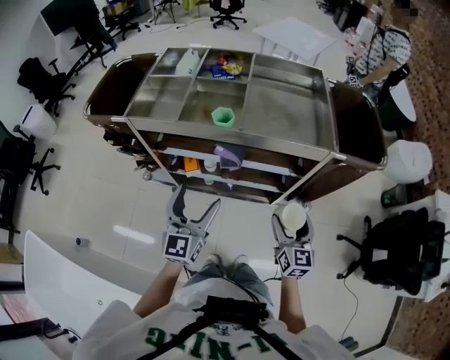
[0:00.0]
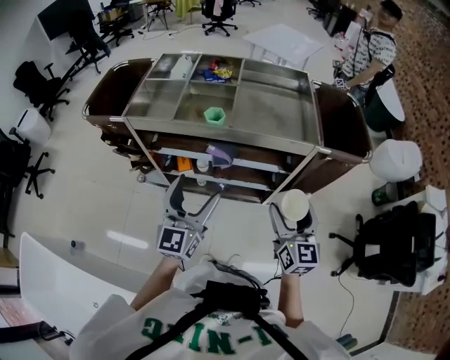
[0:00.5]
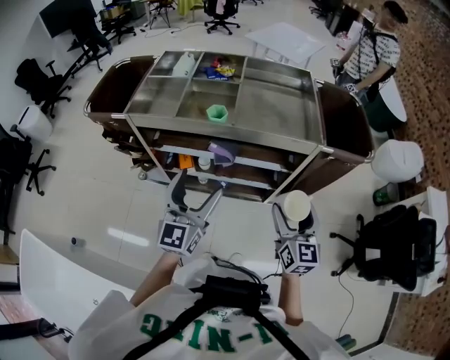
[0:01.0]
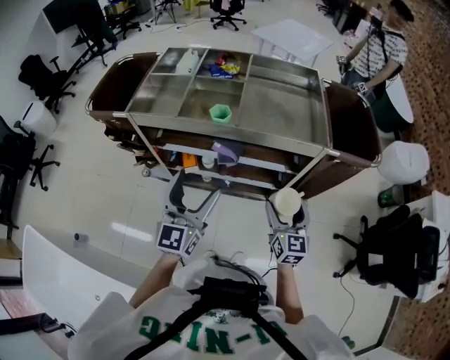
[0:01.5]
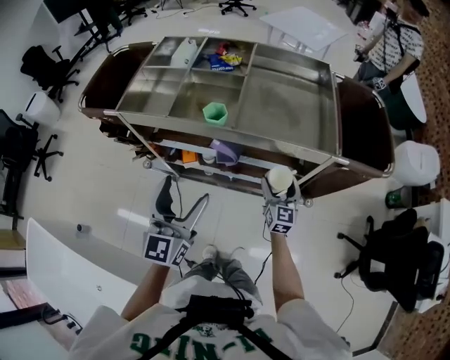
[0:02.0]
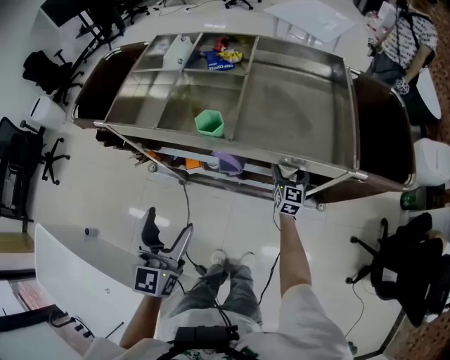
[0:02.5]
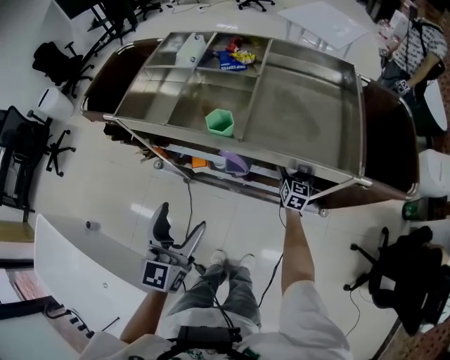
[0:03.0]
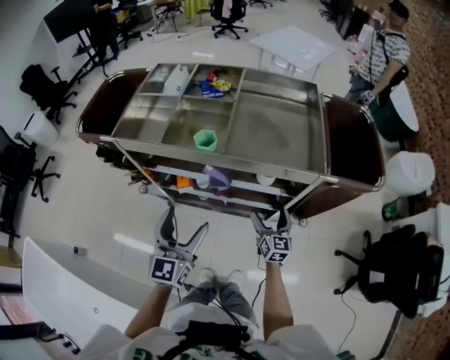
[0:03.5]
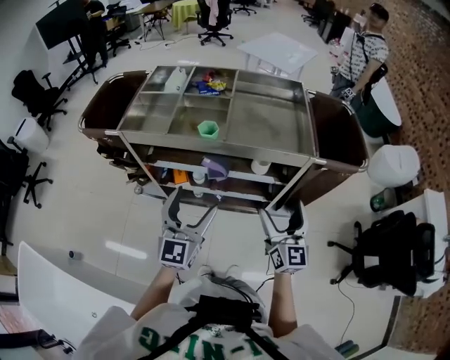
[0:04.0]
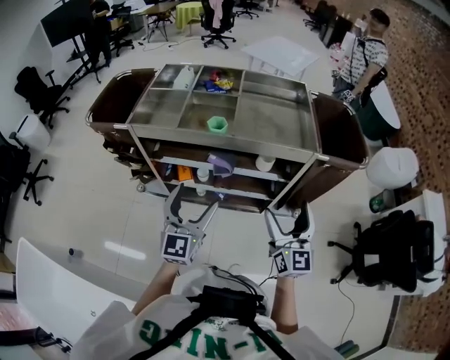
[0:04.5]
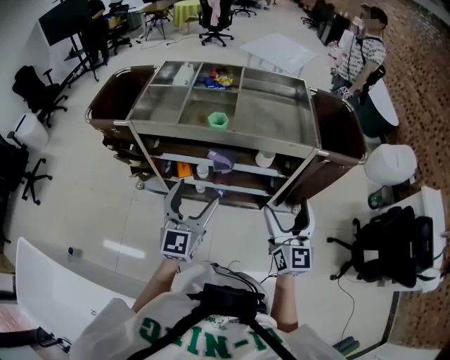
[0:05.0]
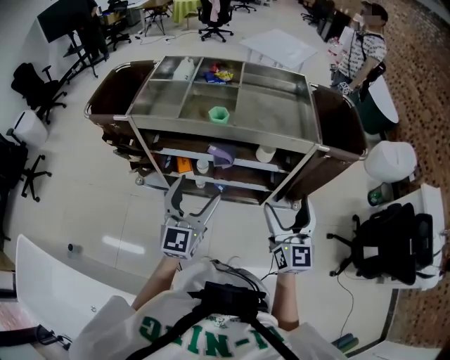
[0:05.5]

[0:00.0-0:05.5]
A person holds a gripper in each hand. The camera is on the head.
0:00.0 to 0:02.0: The left gripper shifts by roughly 5 cm; the right gripper moves forward and downward, about 15 cm.
0:02.0 to 0:03.5: The right gripper goes forward and returns, about 15 cm each way.
0:03.5 to 0:05.5: The right gripper moves upward and backward, some 30 cm, and turns by some 20 degrees; the left gripper goes roughly 10 cm upward and backward.

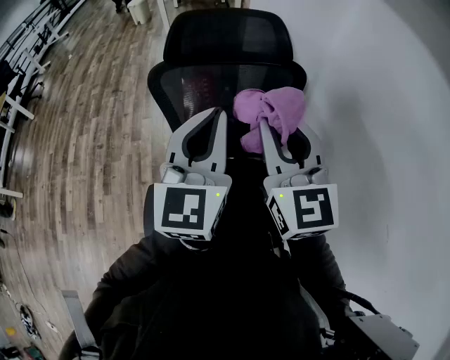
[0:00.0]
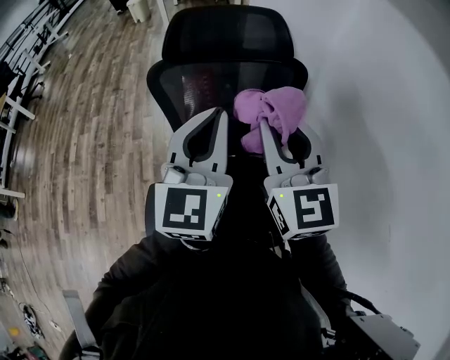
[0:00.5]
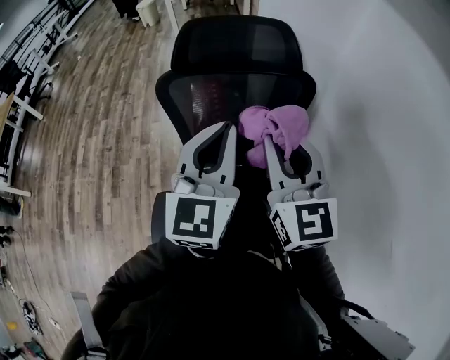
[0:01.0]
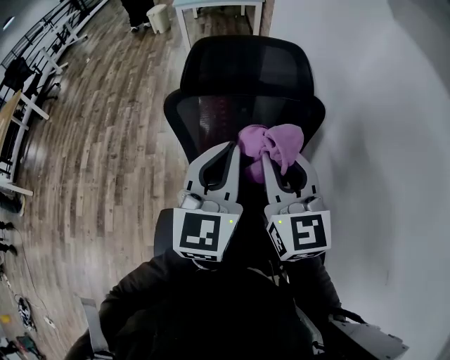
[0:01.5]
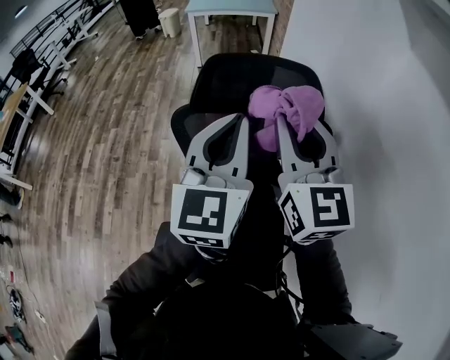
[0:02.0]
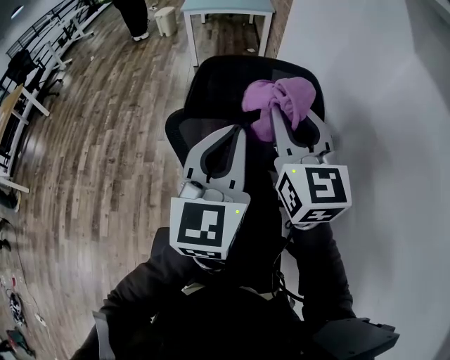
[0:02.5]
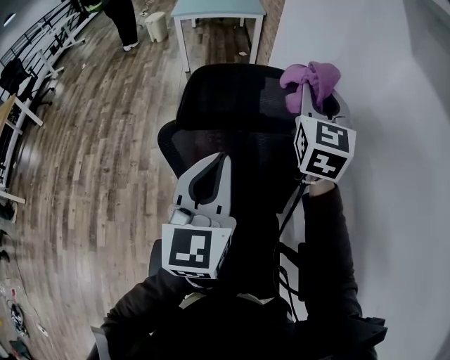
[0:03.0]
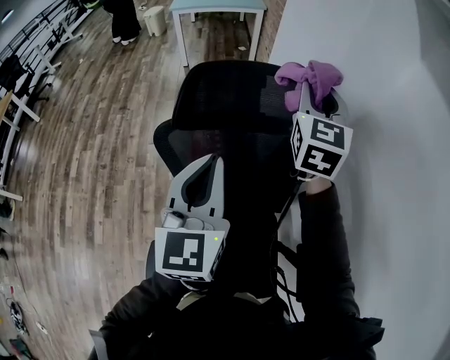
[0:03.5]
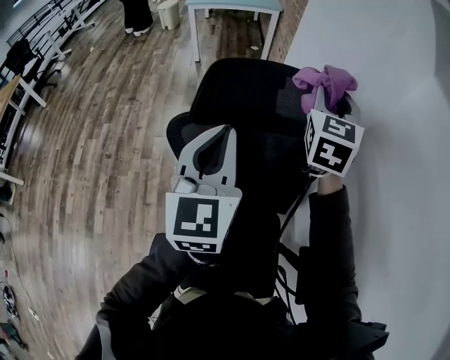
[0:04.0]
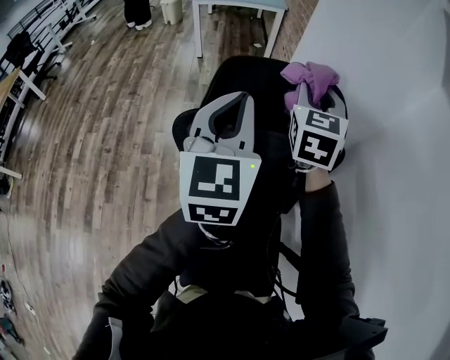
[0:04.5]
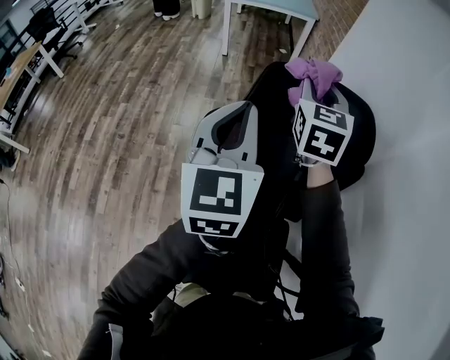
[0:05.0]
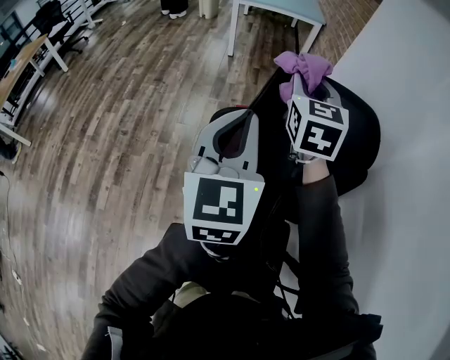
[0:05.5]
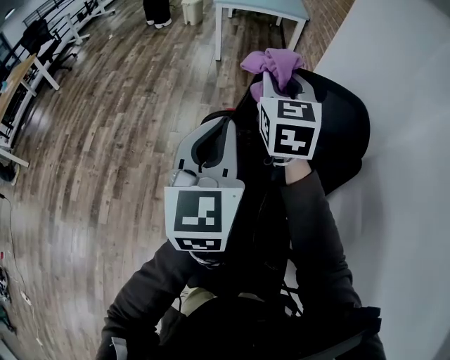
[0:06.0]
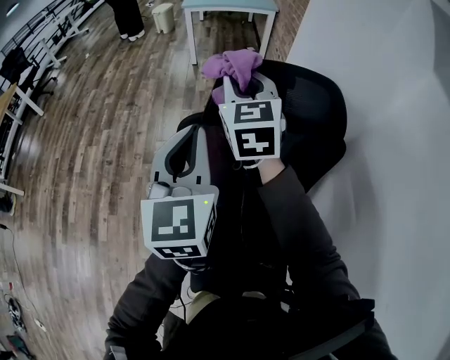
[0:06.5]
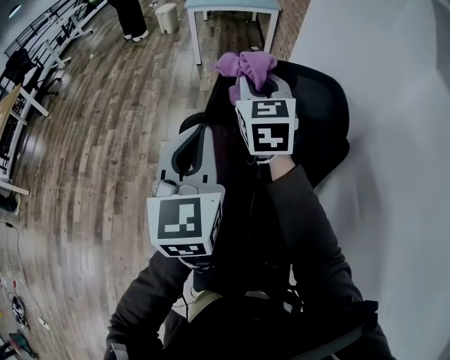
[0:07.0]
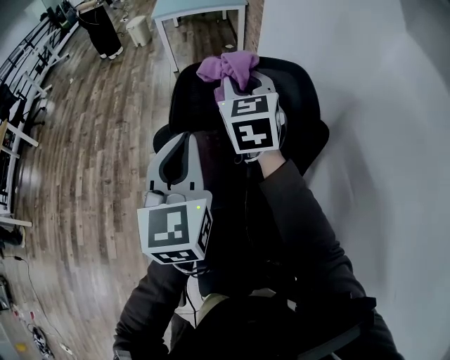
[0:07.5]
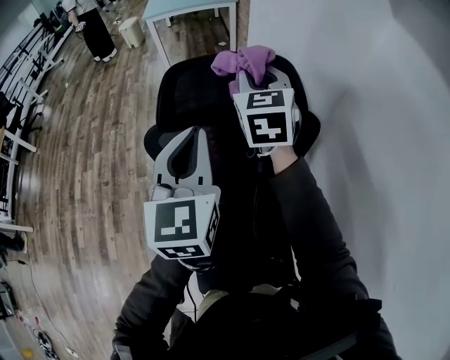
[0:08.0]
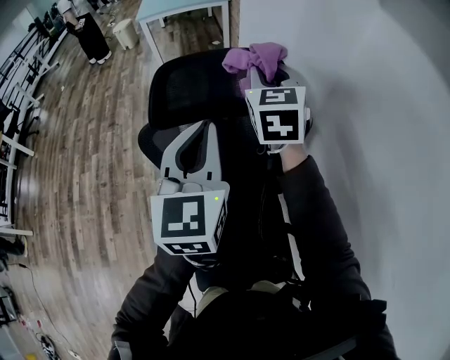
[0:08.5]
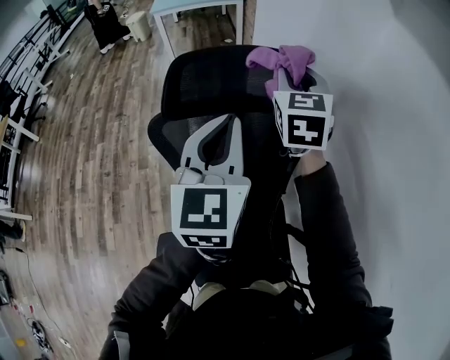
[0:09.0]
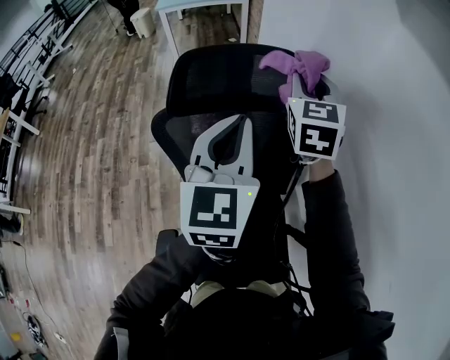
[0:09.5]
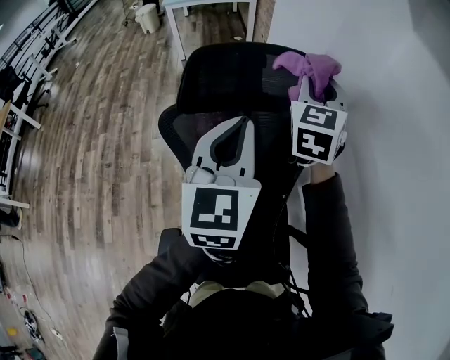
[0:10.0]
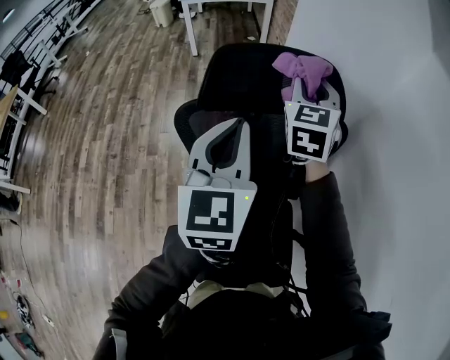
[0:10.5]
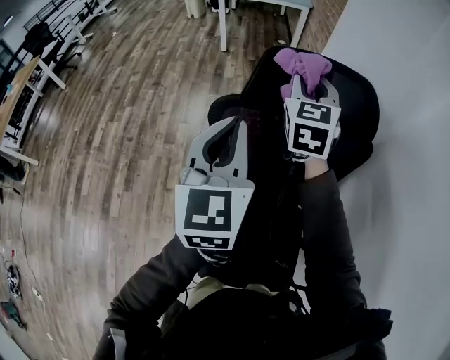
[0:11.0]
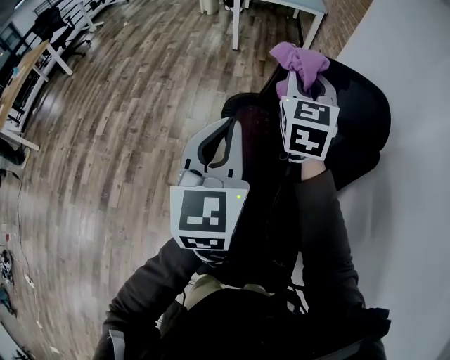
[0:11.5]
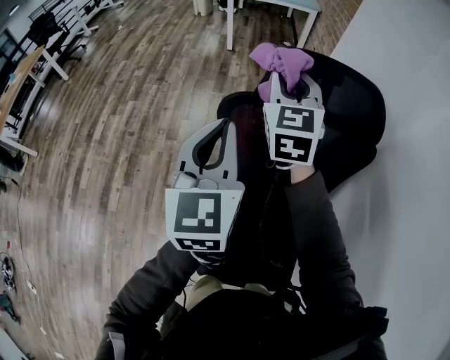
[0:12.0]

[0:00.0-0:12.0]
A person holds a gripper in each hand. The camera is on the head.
0:00.0 to 0:02.0: The left gripper moves forward, roughly 15 cm; the right gripper is displaced forward and upward by some 15 cm.
0:02.0 to 0:04.0: The left gripper heads forward, covering roughly 5 cm; the right gripper heads forward, covering some 20 cm, and rotates roughly 30 degrees.
0:04.0 to 0:06.0: The right gripper shifts about 25 cm to the left, and rotates about 20 degrees; the left gripper goes some 10 cm to the left.
0:06.0 to 0:08.0: The grippers both shift to the right by roughly 15 cm.
0:08.0 to 0:10.0: The right gripper is displaced to the right by roughly 10 cm.
0:10.0 to 0:12.0: Both grippers travel together to the left, about 20 cm. The right gripper swivels some 20 degrees.

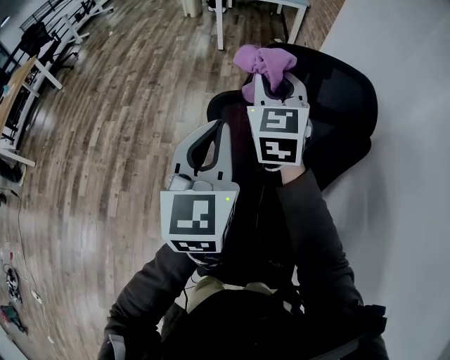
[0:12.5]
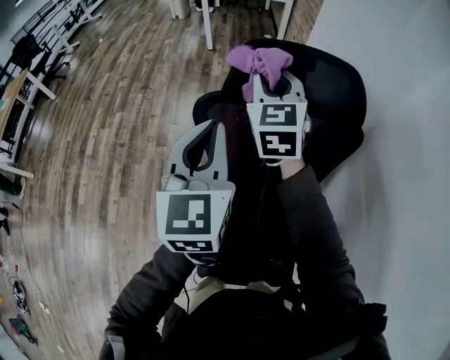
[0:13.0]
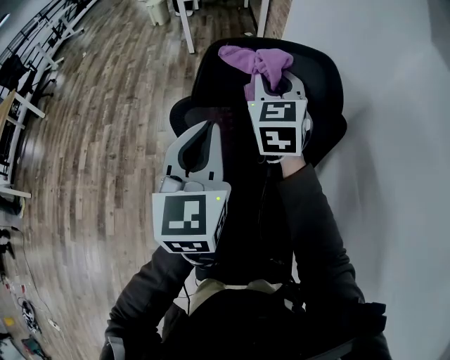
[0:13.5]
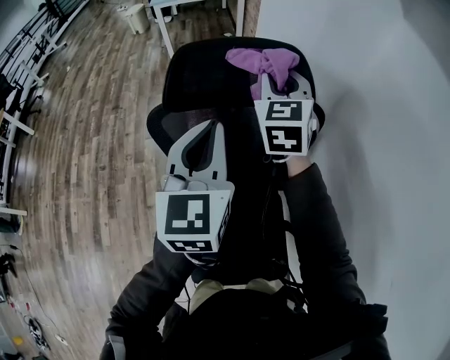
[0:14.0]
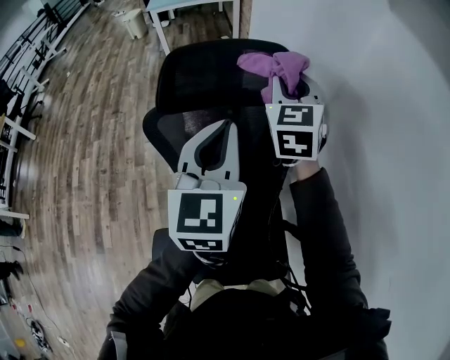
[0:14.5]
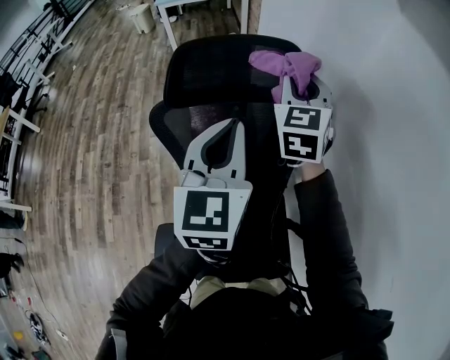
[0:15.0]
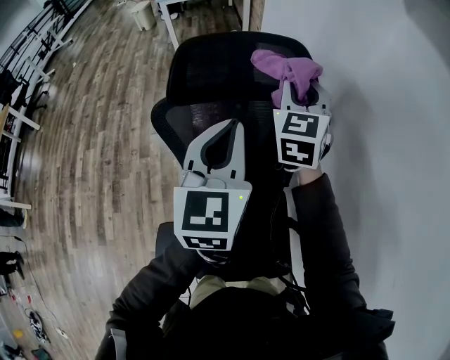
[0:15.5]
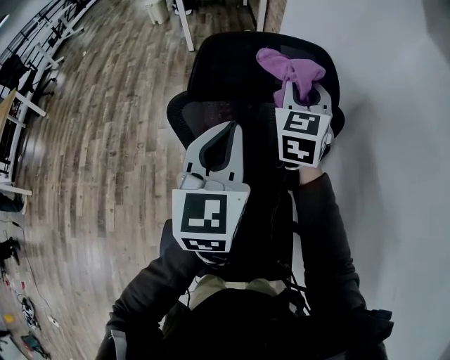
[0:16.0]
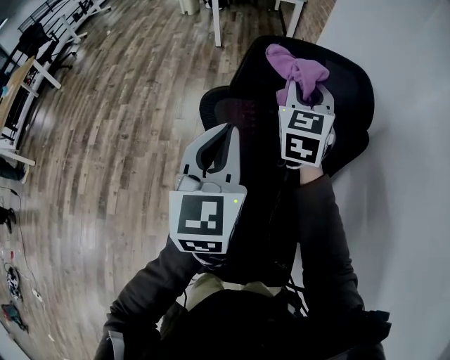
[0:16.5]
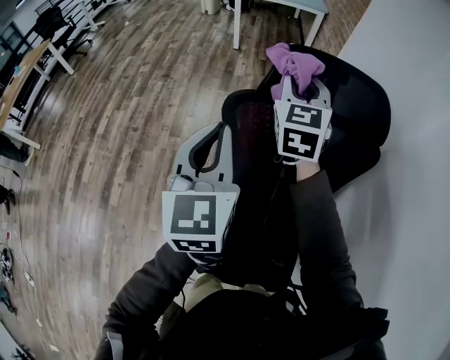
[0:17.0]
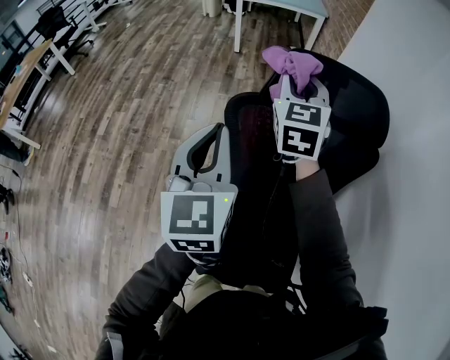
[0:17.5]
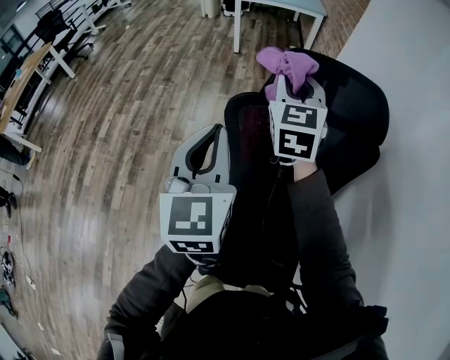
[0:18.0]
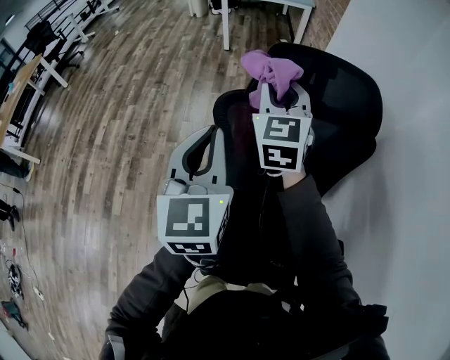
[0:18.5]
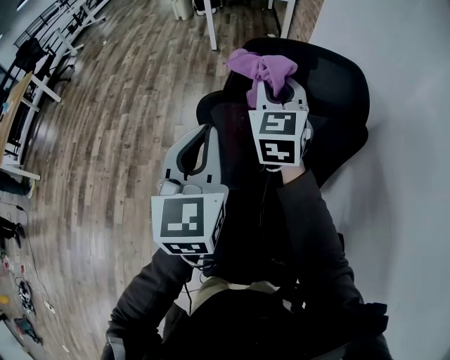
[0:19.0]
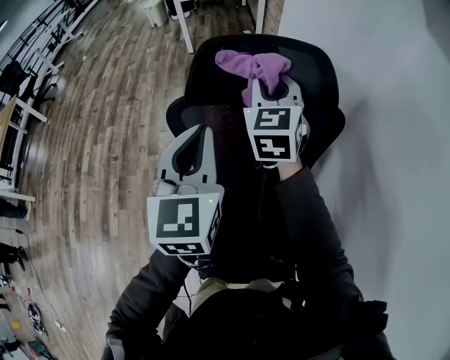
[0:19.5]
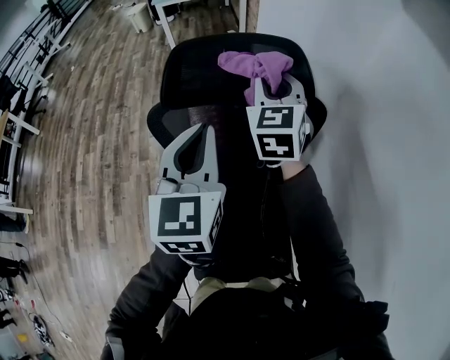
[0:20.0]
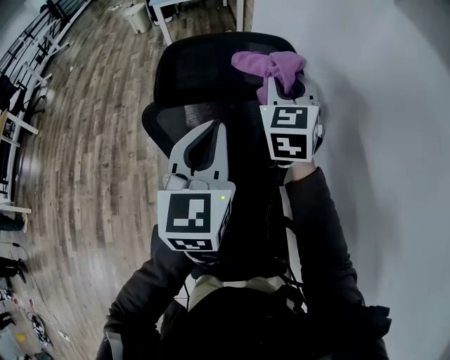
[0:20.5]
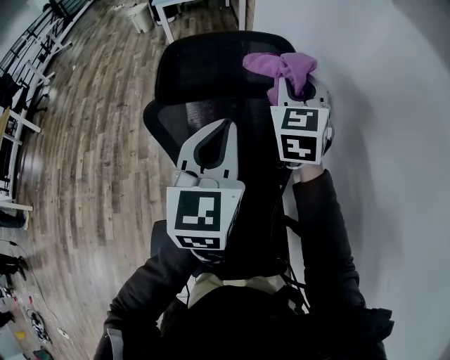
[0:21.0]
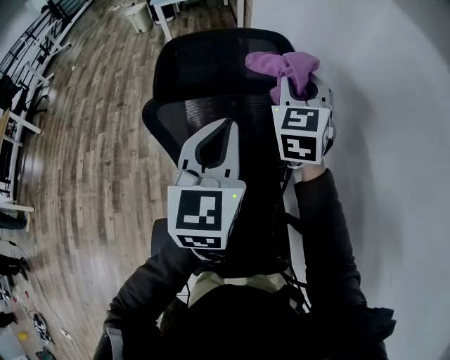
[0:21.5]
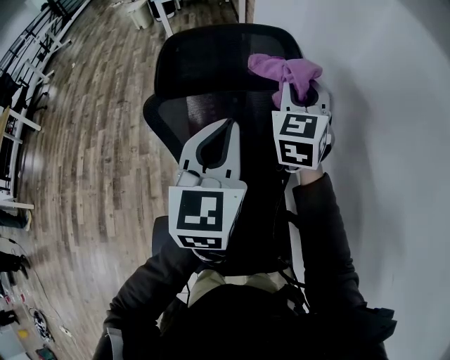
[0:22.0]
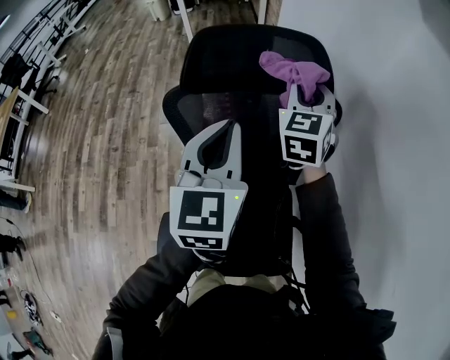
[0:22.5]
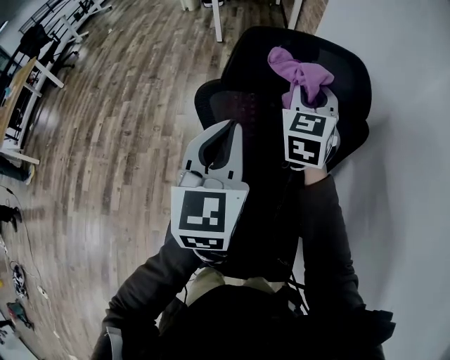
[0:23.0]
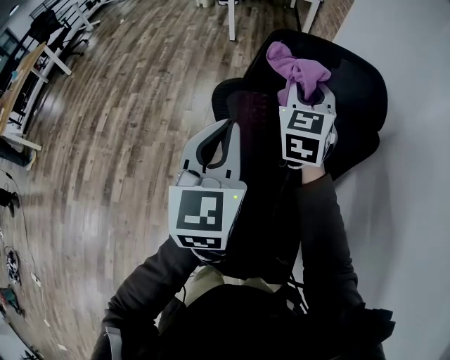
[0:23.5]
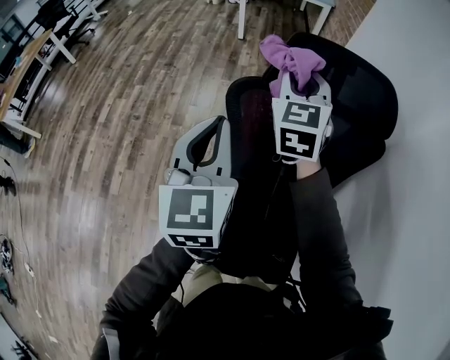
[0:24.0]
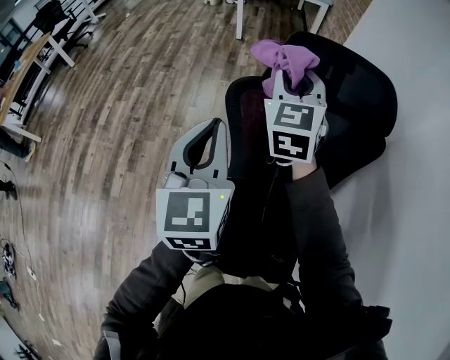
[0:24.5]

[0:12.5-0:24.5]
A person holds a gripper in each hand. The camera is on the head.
0:12.5 to 0:14.5: The two grippers go approximately 20 cm to the right.
0:14.5 to 0:16.5: Both grippers move to the left, some 15 cm.
0:16.5 to 0:18.5: The right gripper goes some 10 cm to the left, while the left gripper heads to the left, covering roughly 5 cm.
0:18.5 to 0:20.5: Both grippers move to the right, roughly 20 cm.
0:20.5 to 0:22.5: There are only small adjustments of the grippers.
0:22.5 to 0:24.5: Both grippers move to the left, roughly 20 cm.
